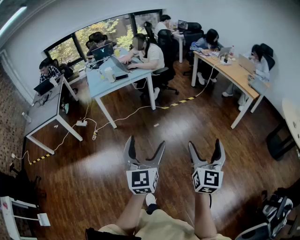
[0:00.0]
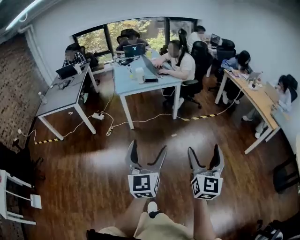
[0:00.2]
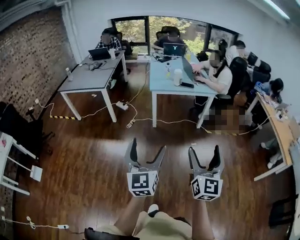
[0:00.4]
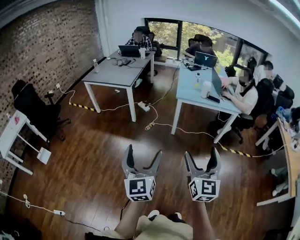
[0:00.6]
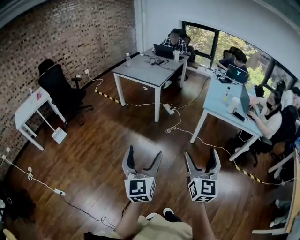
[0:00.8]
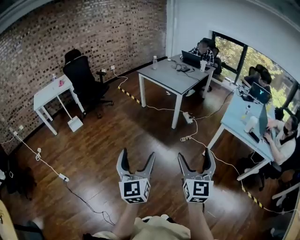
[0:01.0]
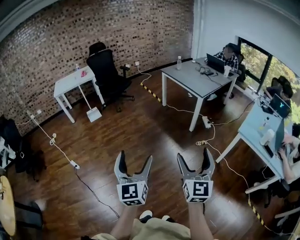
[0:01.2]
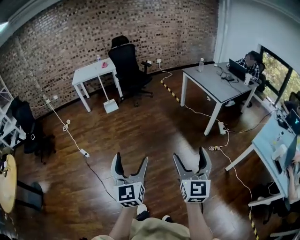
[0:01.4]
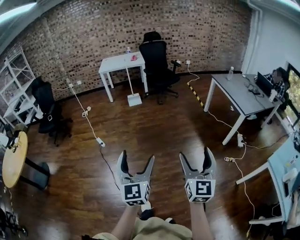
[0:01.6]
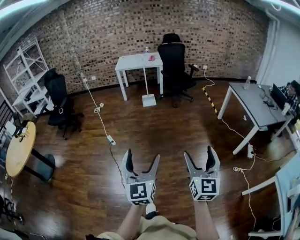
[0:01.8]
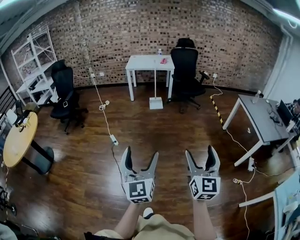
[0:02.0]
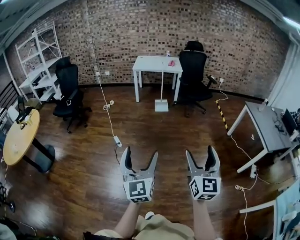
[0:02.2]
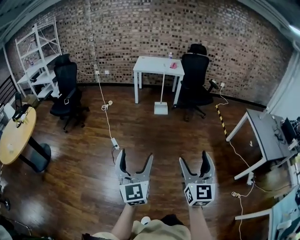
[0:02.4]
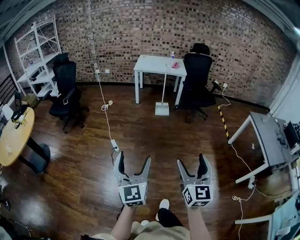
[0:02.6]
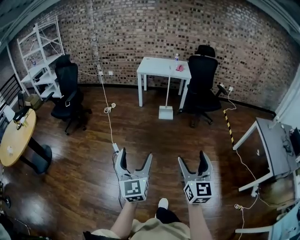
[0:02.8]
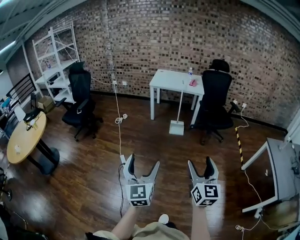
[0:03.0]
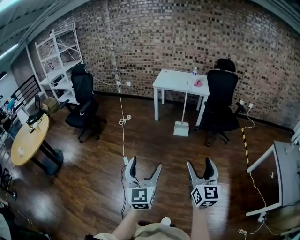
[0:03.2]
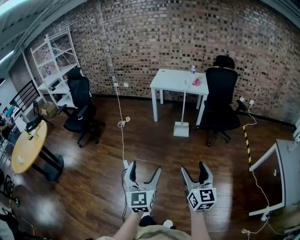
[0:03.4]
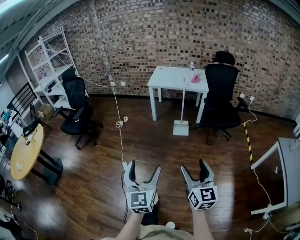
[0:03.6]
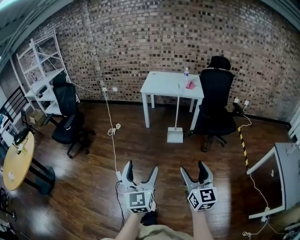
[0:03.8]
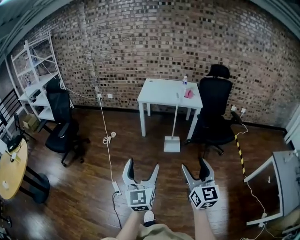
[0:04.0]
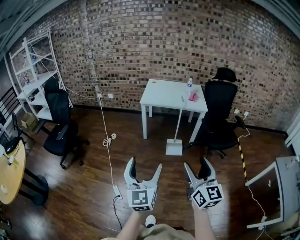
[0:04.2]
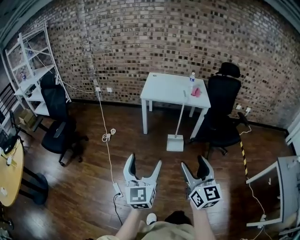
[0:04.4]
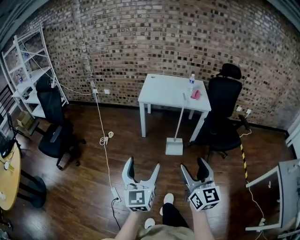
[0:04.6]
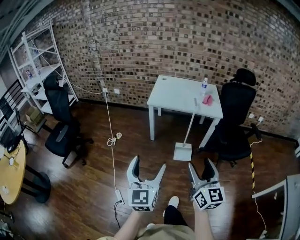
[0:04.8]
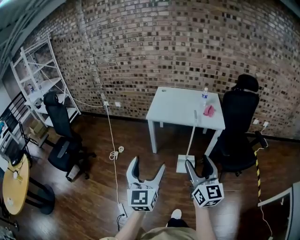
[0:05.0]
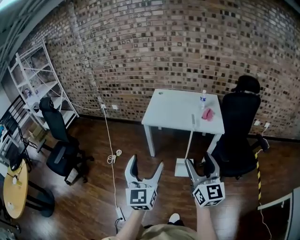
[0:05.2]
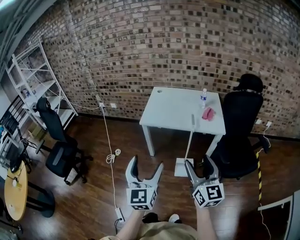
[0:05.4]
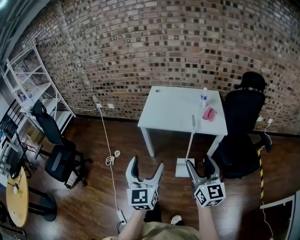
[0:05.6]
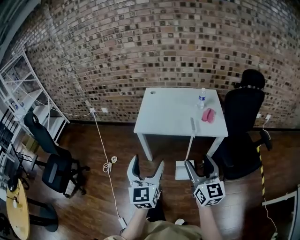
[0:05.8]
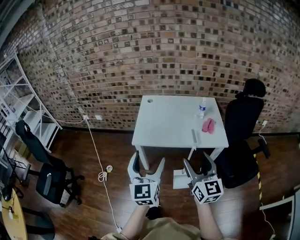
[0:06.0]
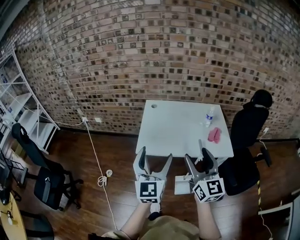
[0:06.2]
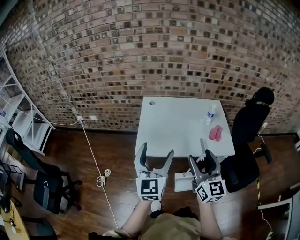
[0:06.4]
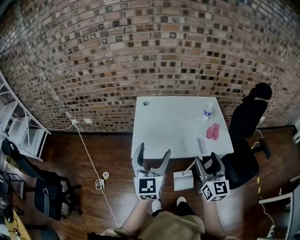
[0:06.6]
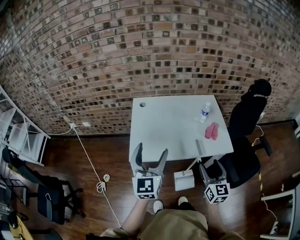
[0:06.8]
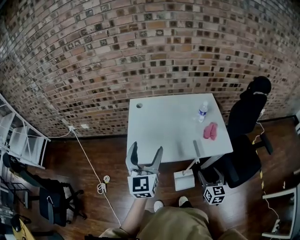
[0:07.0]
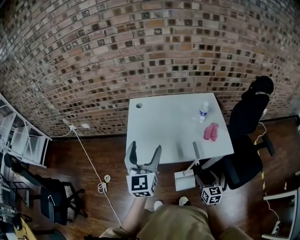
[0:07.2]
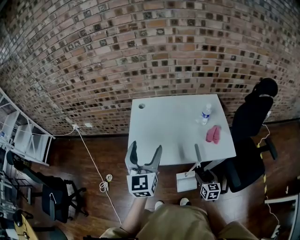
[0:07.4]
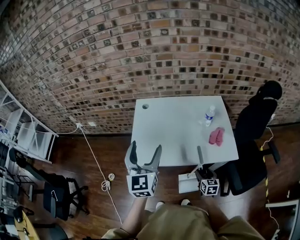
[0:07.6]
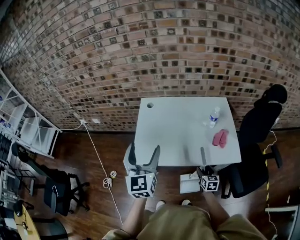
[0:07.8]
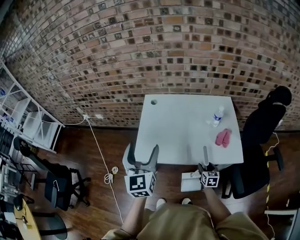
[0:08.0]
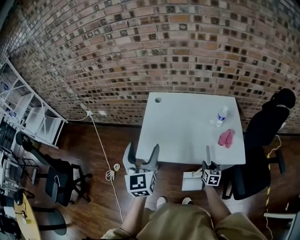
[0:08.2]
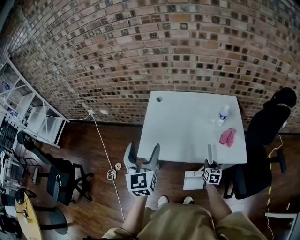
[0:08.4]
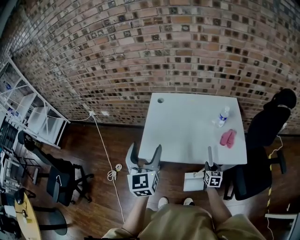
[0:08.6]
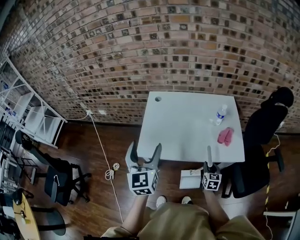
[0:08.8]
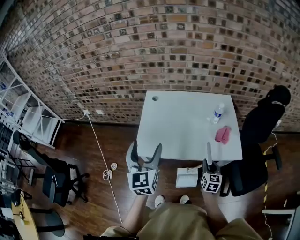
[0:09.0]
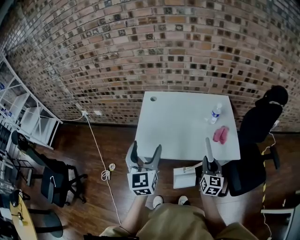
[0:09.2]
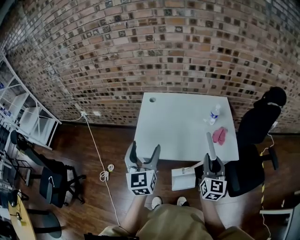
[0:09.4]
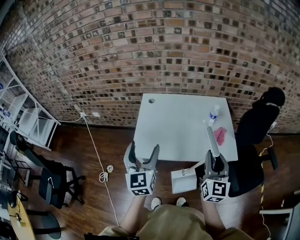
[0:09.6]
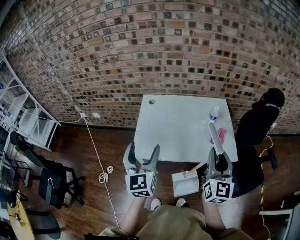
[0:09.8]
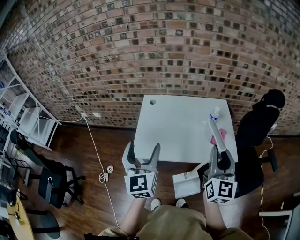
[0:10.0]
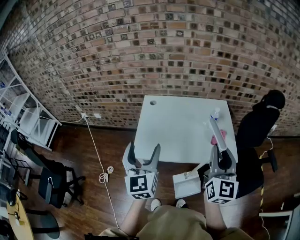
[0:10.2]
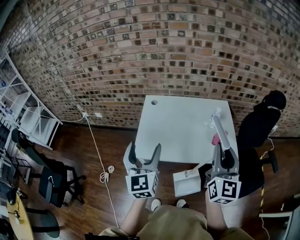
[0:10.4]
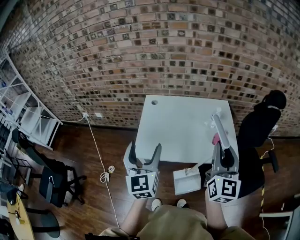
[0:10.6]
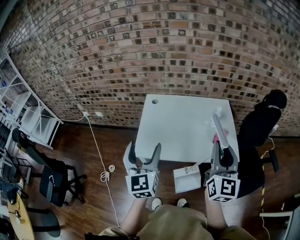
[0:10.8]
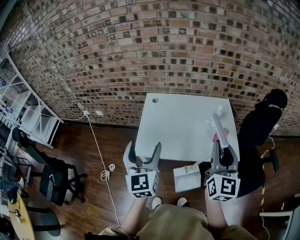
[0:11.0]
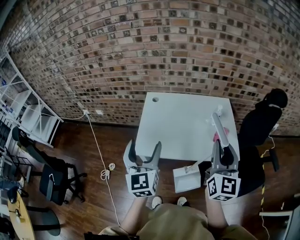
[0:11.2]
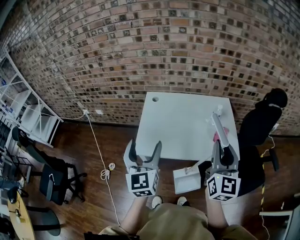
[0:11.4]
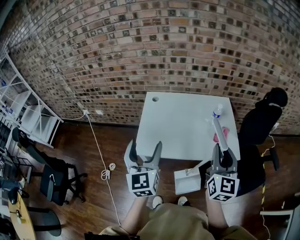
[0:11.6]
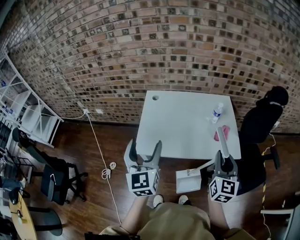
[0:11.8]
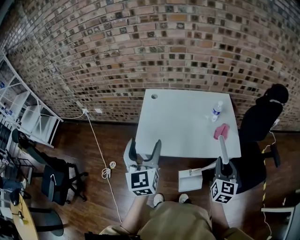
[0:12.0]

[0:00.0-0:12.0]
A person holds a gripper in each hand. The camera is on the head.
0:00.0 to 0:01.6: The two grippers travel together, roughly 60 cm. The left gripper changes its angle by approximately 100 degrees. The right gripper rotates some 100 degrees.
0:01.6 to 0:03.0: Both grippers are carried forward, about 50 cm. The left gripper rotates approximately 20 degrees. The right gripper rotates approximately 30 degrees.
0:03.0 to 0:04.4: The pair of grippers is taken forward, approximately 40 cm.
0:04.4 to 0:06.0: The two grippers travel together, forward, roughly 60 cm.
0:06.0 to 0:07.6: The left gripper shifts roughly 25 cm forward. Meanwhile the right gripper is displaced downward and forward by approximately 40 cm, and tilts its fingers about 40 degrees downward.
0:07.6 to 0:09.0: The left gripper changes place by some 5 cm; the right gripper travels upward by some 10 cm, and closes its fingers.
0:09.0 to 0:10.4: The right gripper goes approximately 35 cm upward, and tips its fingers upward by some 30 degrees.
0:10.4 to 0:12.0: The right gripper moves downward, some 15 cm, and rotates approximately 20 degrees.

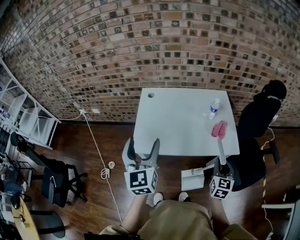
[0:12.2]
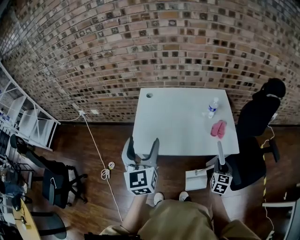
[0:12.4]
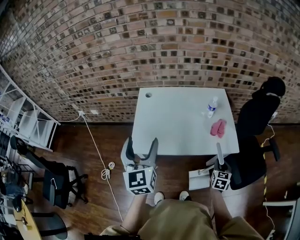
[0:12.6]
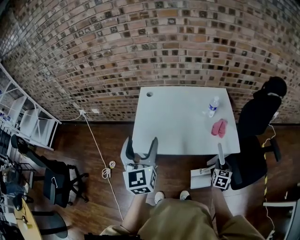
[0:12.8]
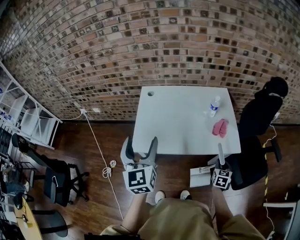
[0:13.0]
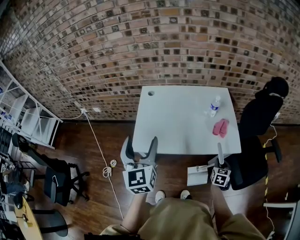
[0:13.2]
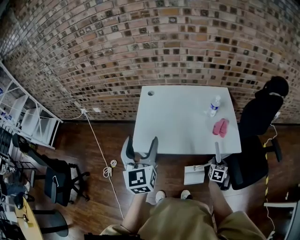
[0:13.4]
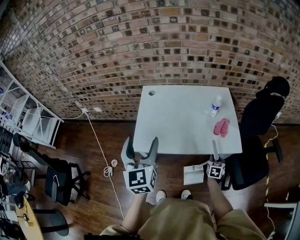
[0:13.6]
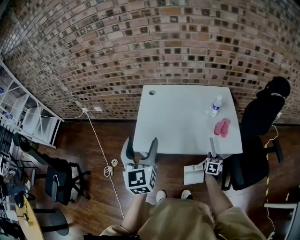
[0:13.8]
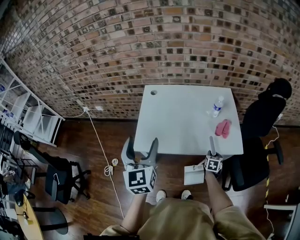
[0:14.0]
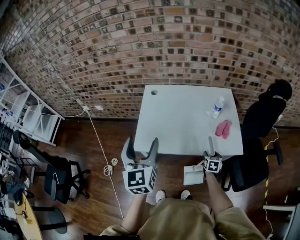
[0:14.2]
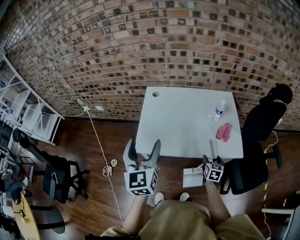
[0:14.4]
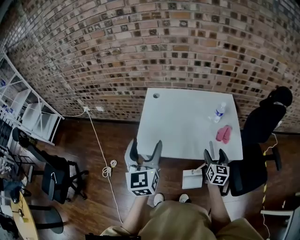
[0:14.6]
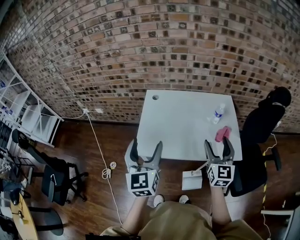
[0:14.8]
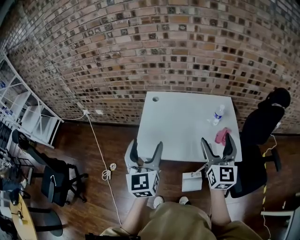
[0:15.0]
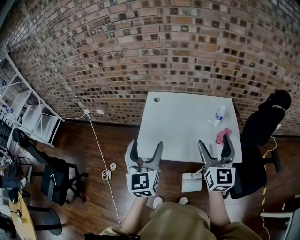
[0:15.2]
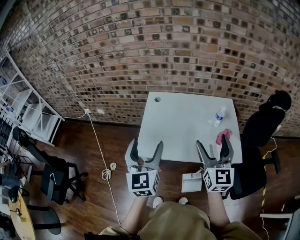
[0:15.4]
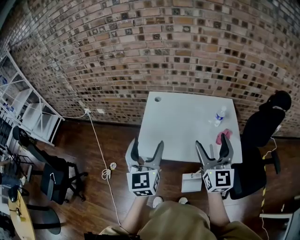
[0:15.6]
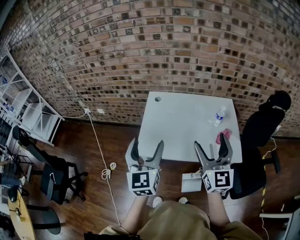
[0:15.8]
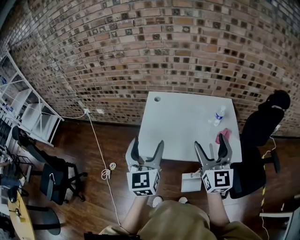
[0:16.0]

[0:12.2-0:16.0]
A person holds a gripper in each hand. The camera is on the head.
0:12.2 to 0:13.4: The right gripper moves downward, about 20 cm, and changes its angle by about 20 degrees.
0:13.4 to 0:14.8: The right gripper shifts roughly 30 cm upward and to the left, tilts its fingers some 40 degrees upward, and opens up.
0:14.8 to 0:16.0: The right gripper travels upward and to the left by about 10 cm.

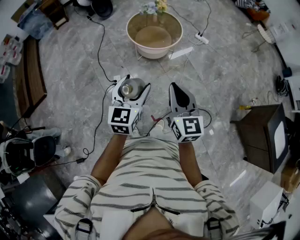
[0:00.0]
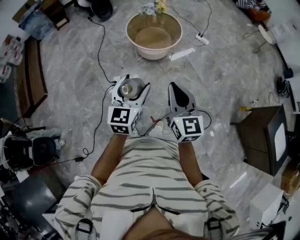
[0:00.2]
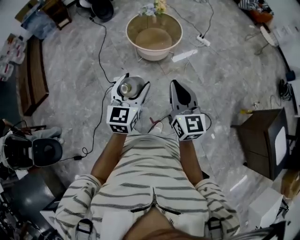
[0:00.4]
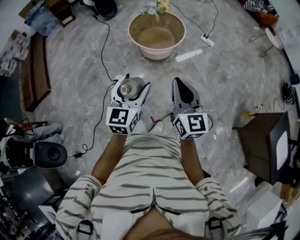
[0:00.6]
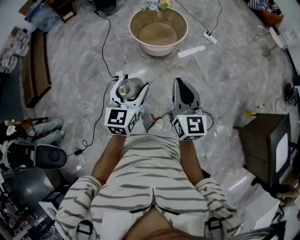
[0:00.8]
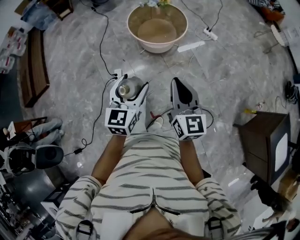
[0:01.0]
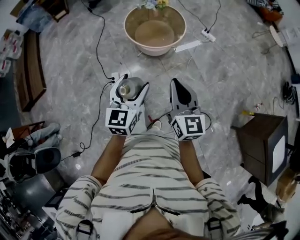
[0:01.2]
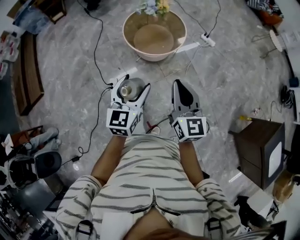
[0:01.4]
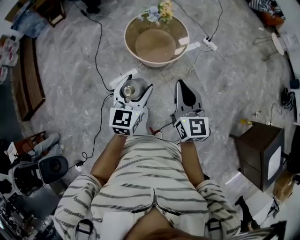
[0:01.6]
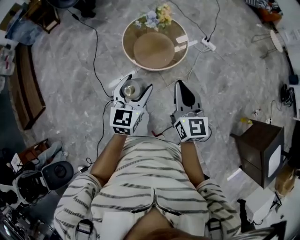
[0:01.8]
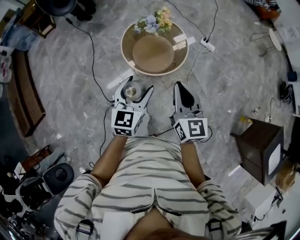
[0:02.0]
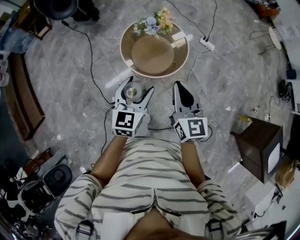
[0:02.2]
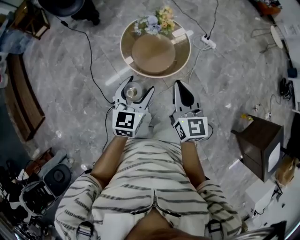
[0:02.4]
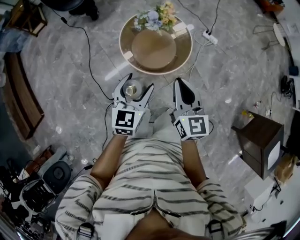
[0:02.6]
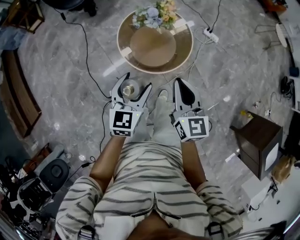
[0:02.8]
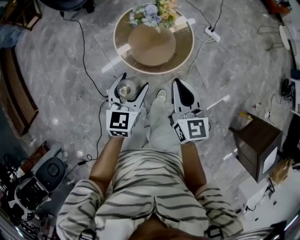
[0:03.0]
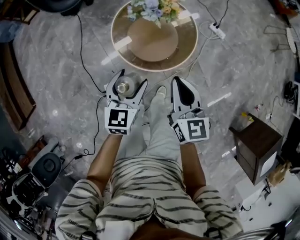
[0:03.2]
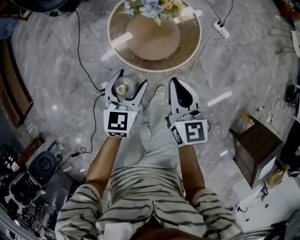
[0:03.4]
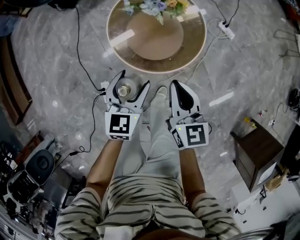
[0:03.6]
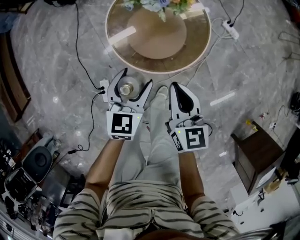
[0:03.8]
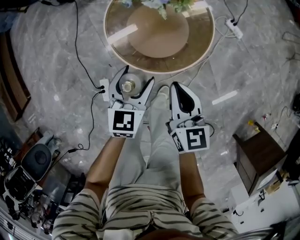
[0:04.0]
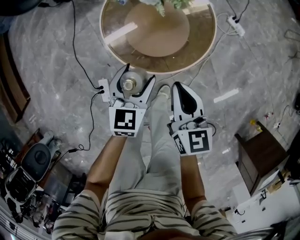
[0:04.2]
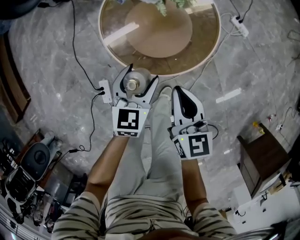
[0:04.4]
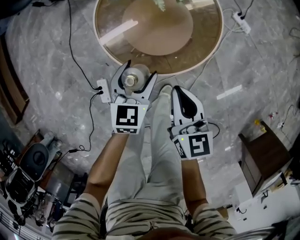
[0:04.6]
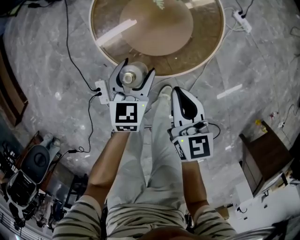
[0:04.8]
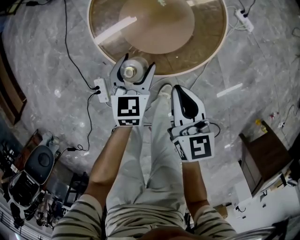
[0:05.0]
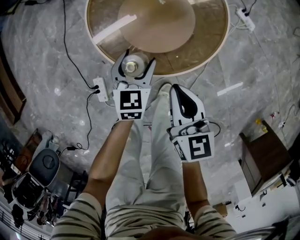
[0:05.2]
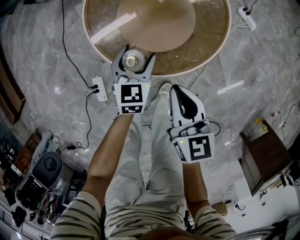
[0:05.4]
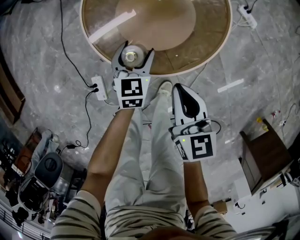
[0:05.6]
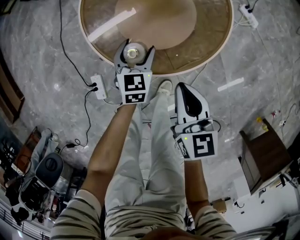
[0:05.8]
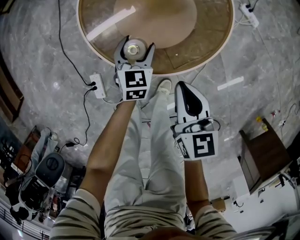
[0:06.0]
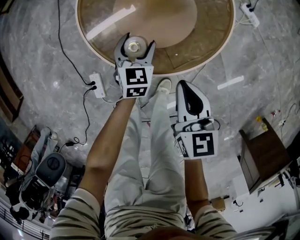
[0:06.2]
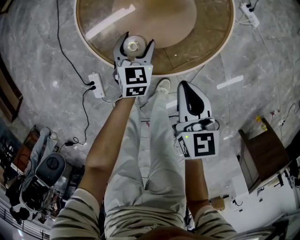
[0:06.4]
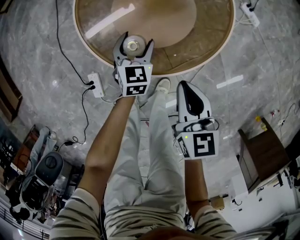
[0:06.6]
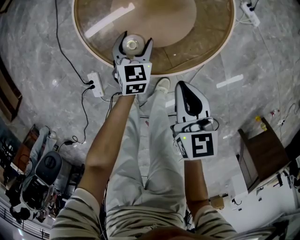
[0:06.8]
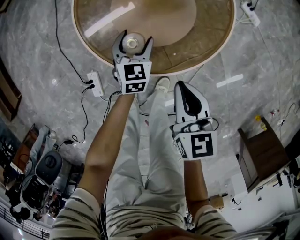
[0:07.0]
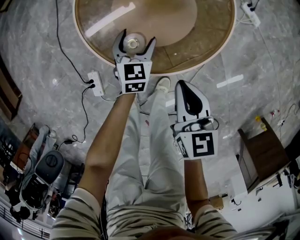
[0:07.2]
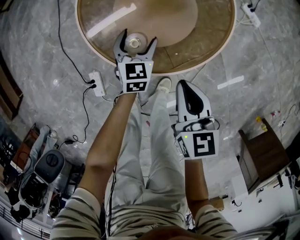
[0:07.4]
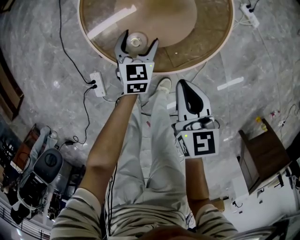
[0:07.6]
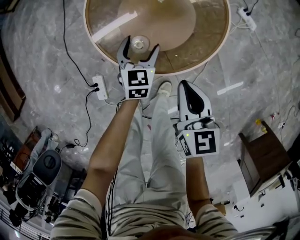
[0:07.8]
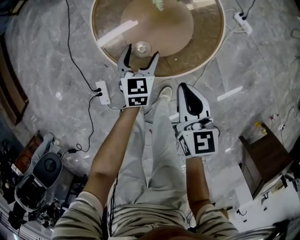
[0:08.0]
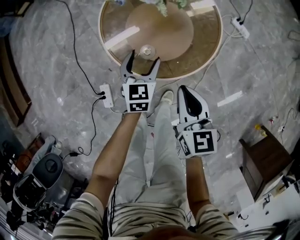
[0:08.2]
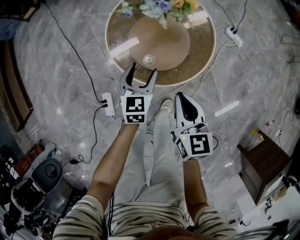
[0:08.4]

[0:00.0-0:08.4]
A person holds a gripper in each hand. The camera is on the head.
0:00.0 to 0:01.4: Both grippers travel together forward, about 20 cm.
0:01.4 to 0:02.8: Both grippers travel together forward, about 30 cm.
0:02.8 to 0:04.2: The grippers both shift downward by approximately 25 cm.
0:04.2 to 0:05.6: The left gripper moves downward, some 20 cm; the right gripper heads downward, covering roughly 15 cm.
0:05.6 to 0:07.0: The left gripper goes approximately 5 cm downward.
0:07.0 to 0:08.4: Both grippers travel together upward, roughly 15 cm.
